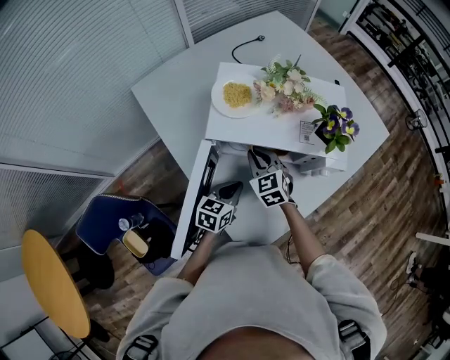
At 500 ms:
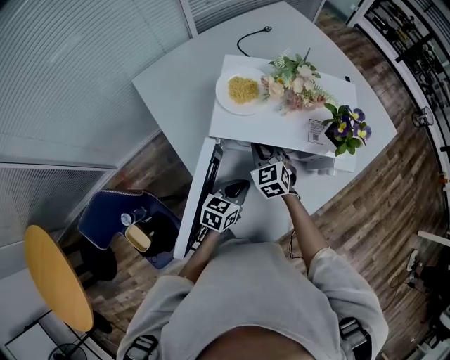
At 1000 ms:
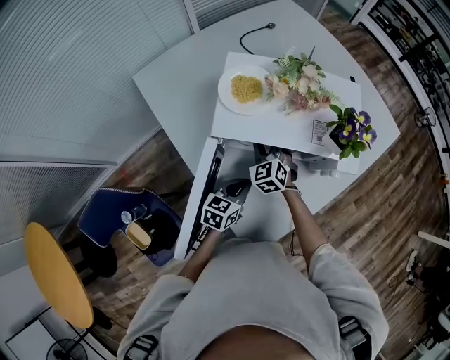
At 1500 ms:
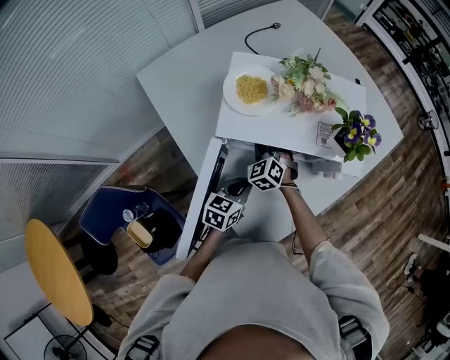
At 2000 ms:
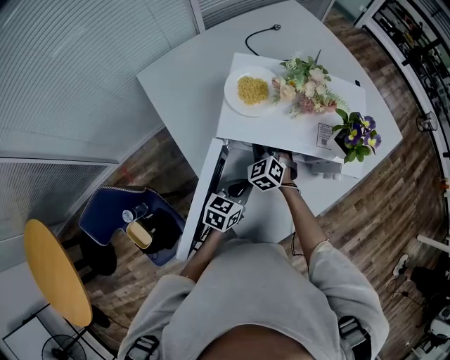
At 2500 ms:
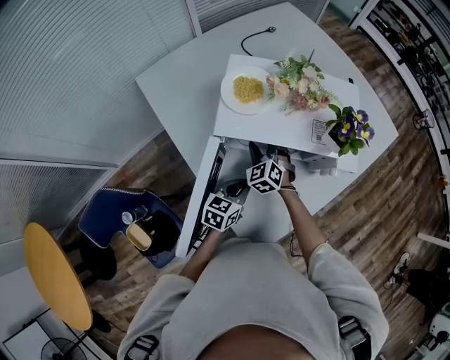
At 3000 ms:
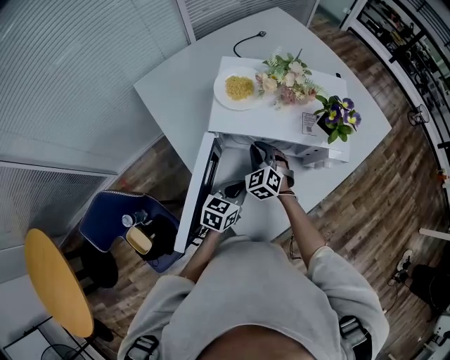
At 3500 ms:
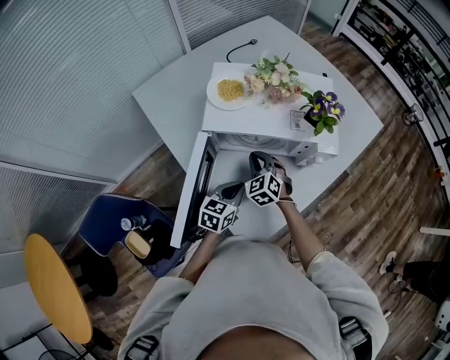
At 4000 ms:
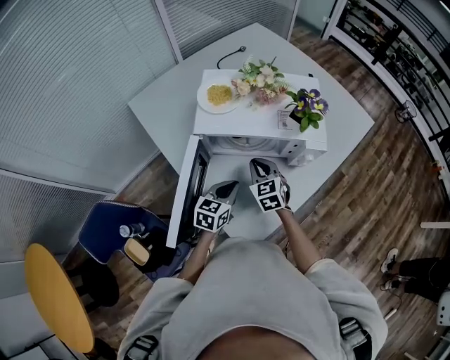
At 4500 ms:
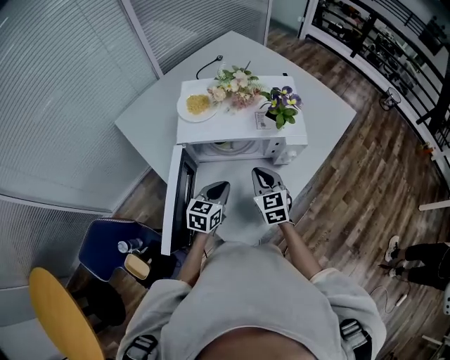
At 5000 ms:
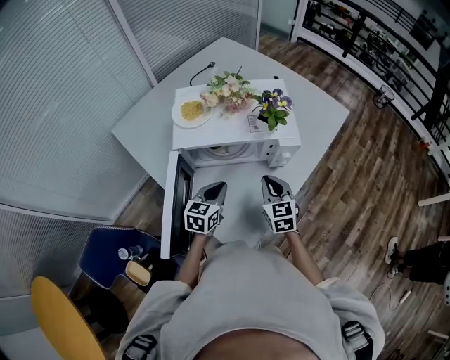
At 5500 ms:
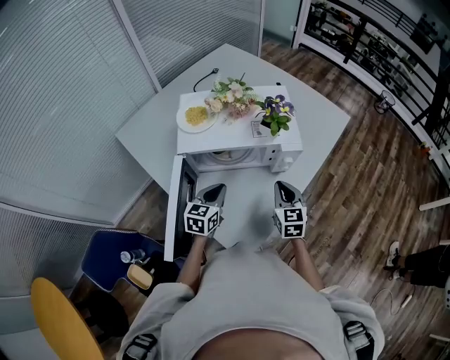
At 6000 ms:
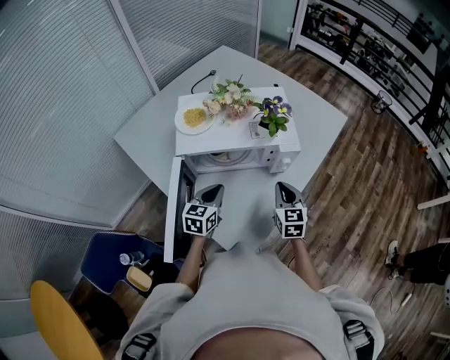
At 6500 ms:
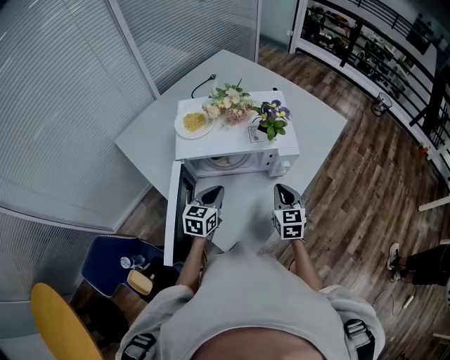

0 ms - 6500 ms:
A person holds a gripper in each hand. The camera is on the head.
0 ms - 2000 ms: The right gripper goes some 5 cm downward, and swivels approximately 20 degrees.
2000 ms - 4500 ms: The right gripper moves to the right, backward and upward, approximately 20 cm, and changes its angle by roughly 40 degrees. The left gripper goes about 5 cm upward.
4500 ms - 6500 ms: The right gripper is displaced to the right by about 10 cm.

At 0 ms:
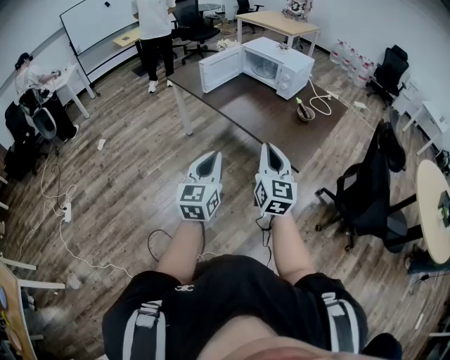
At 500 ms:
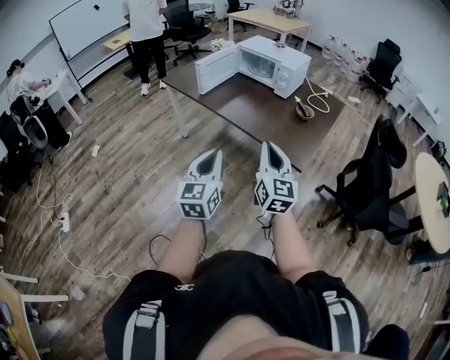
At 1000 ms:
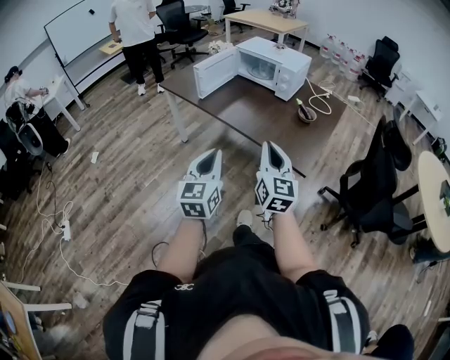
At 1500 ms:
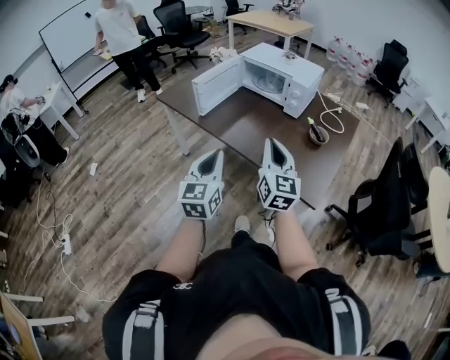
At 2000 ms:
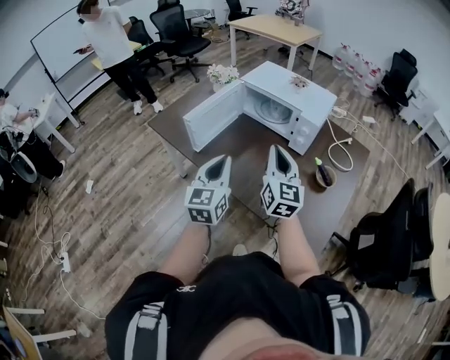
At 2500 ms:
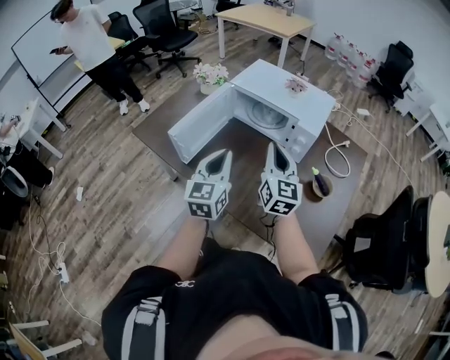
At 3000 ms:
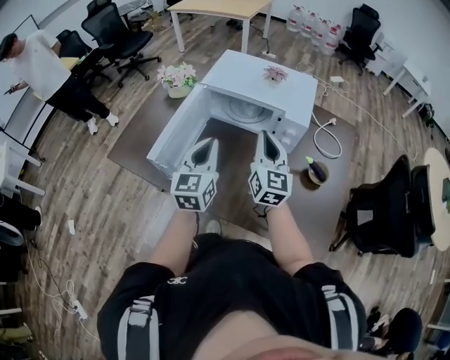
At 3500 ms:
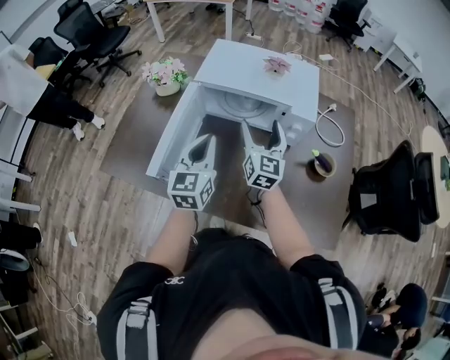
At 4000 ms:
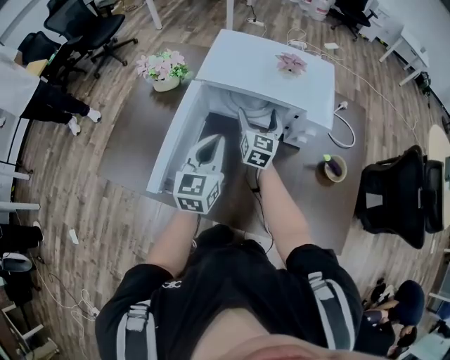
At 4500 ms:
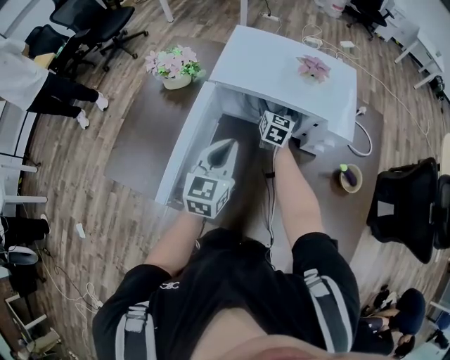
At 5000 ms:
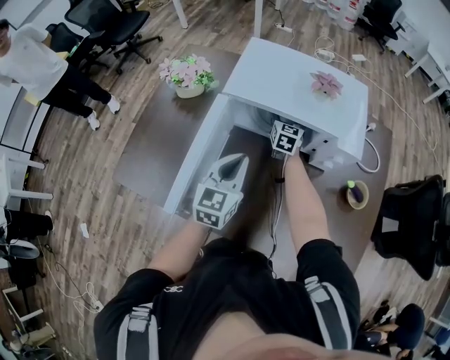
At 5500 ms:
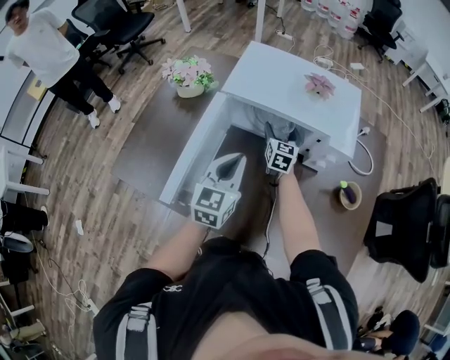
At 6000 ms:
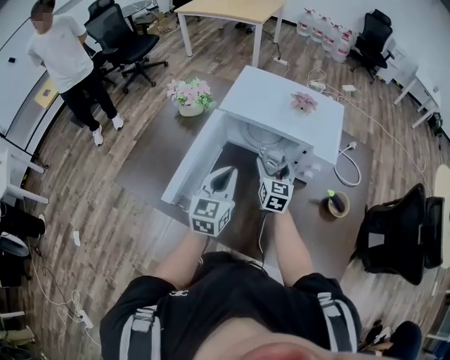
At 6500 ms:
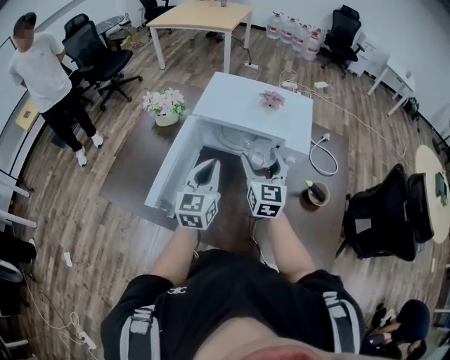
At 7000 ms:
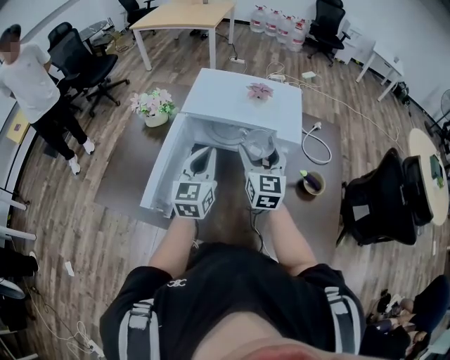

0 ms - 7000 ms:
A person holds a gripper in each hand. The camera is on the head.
0 ms - 2000 ms: The pair of grippers is taken forward, approximately 50 cm.
2000 ms - 3500 ms: Both grippers travel together forward, some 30 cm. The left gripper rotates roughly 20 degrees. Meanwhile the right gripper rotates approximately 20 degrees, and opens.
3500 ms - 5000 ms: The left gripper shifts approximately 10 cm downward and forward. Meanwhile the right gripper heads forward and downward, covering roughly 30 cm, and rotates some 20 degrees.
5000 ms - 7000 ms: The right gripper moves backward and upward, roughly 30 cm. Meanwhile the left gripper moves upward, some 10 cm.

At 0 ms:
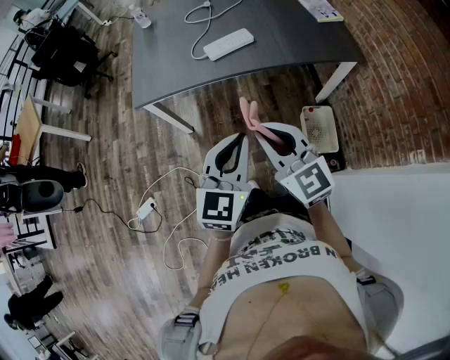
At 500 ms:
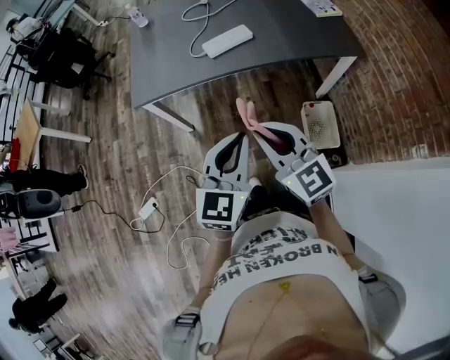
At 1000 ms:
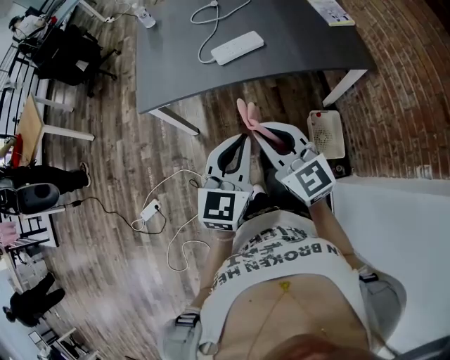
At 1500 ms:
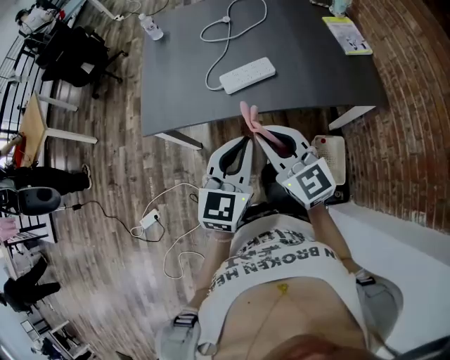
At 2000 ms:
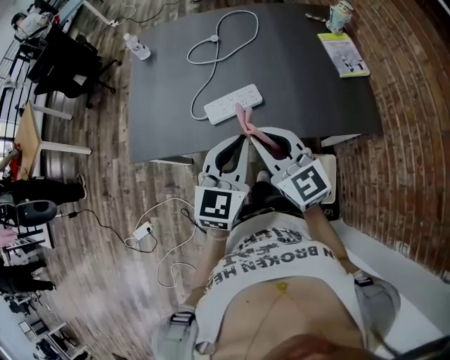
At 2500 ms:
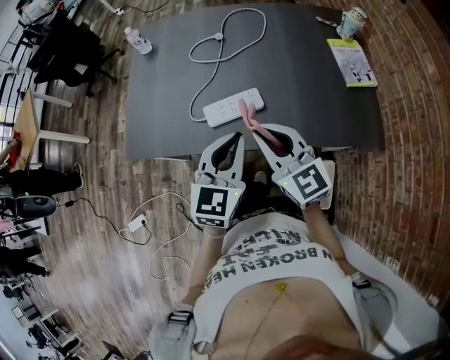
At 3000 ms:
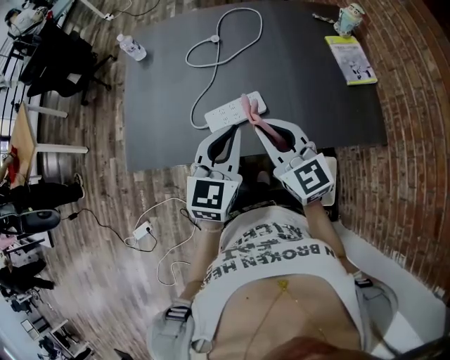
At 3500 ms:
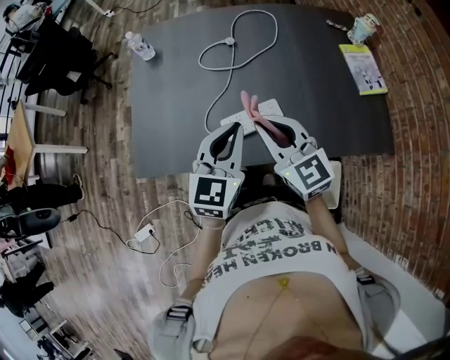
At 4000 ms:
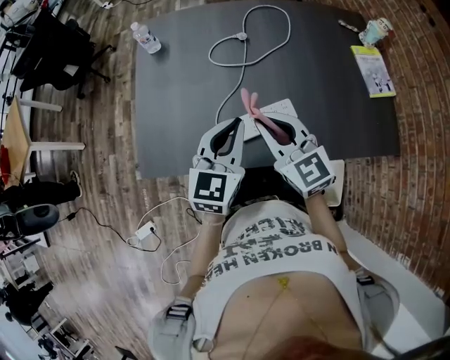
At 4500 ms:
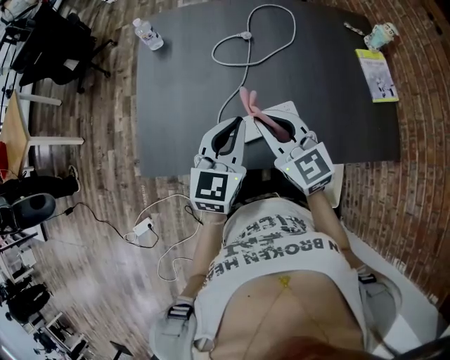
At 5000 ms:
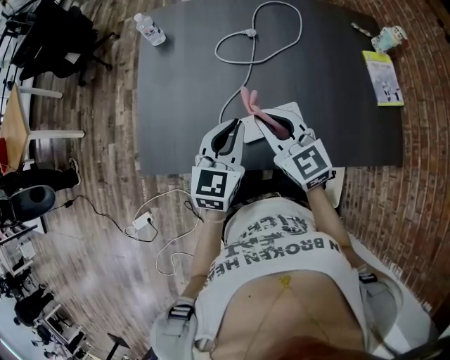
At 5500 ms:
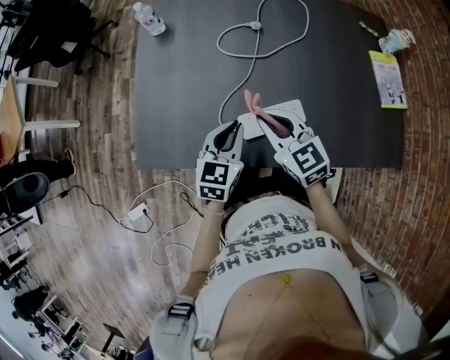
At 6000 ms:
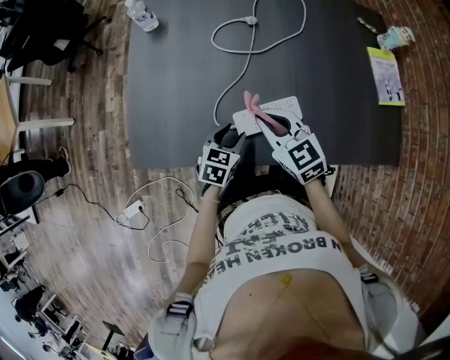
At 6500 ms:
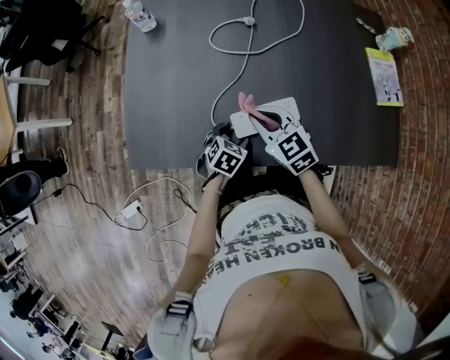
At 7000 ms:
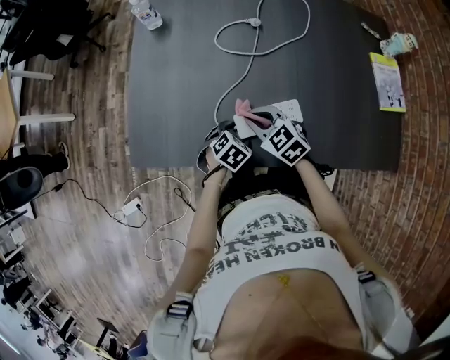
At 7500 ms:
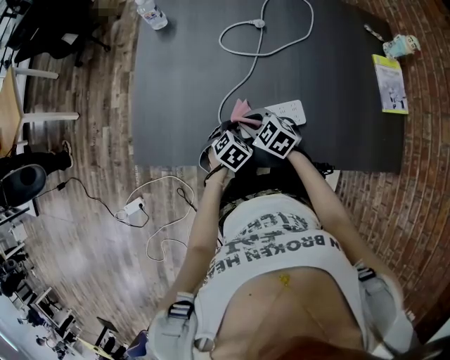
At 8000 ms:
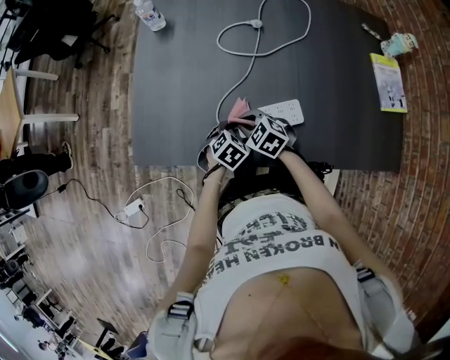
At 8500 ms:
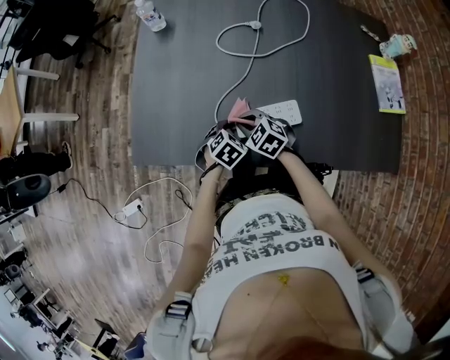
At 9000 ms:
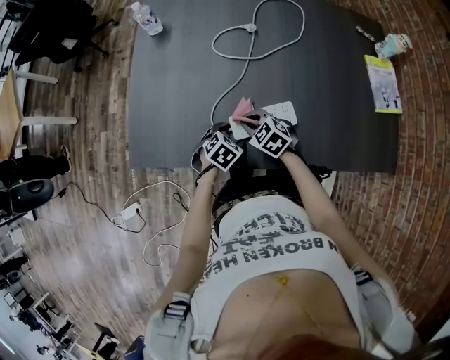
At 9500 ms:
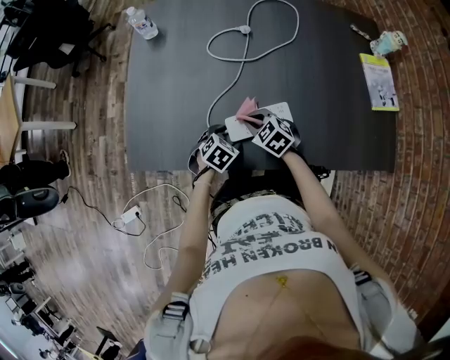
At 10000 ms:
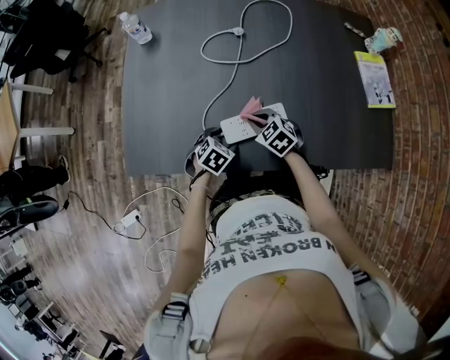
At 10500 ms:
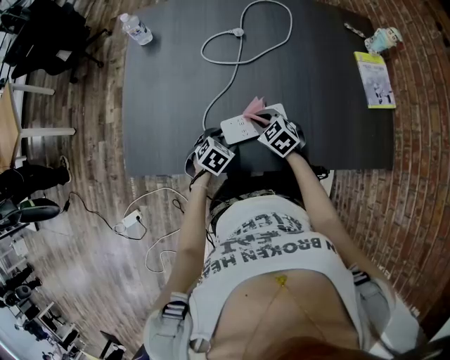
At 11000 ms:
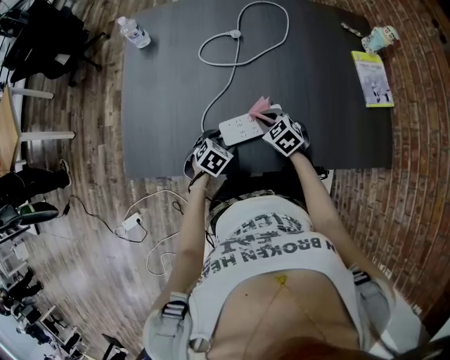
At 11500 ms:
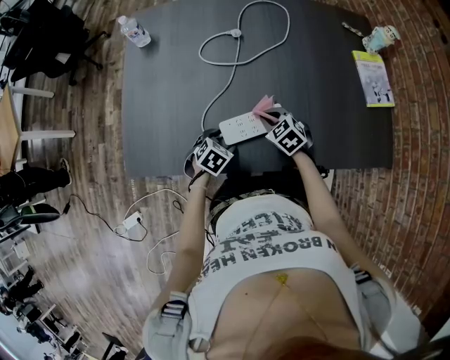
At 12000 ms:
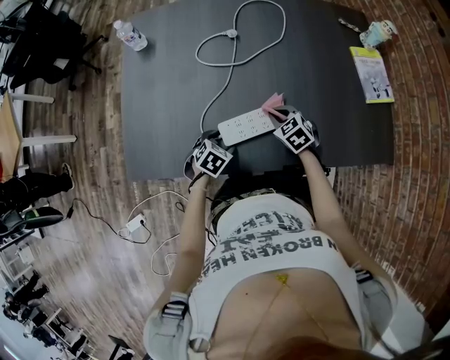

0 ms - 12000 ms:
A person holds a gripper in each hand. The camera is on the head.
0 ms - 2000 ms: Both grippers travel together forward, about 30 cm.
2000 ms - 4000 ms: The two grippers go some 20 cm forward and to the left.
4000 ms - 6000 ms: The right gripper travels downward by about 10 cm; the left gripper shifts approximately 25 cm downward, turns by roughly 30 degrees, and opens its fingers.
6000 ms - 8000 ms: The left gripper heads downward, covering about 5 cm, swivels about 30 degrees, and opens, while the right gripper travels downward by about 15 cm, and swivels approximately 30 degrees.
8000 ms - 10000 ms: The right gripper is displaced to the right by approximately 10 cm.
10000 ms - 12000 ms: The right gripper travels to the right by some 10 cm.

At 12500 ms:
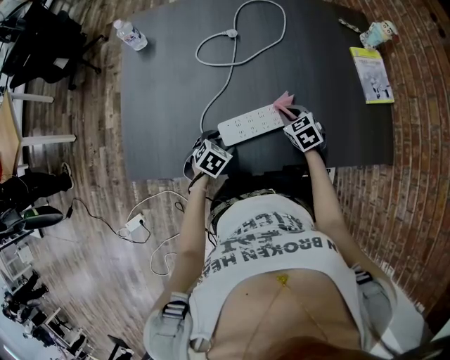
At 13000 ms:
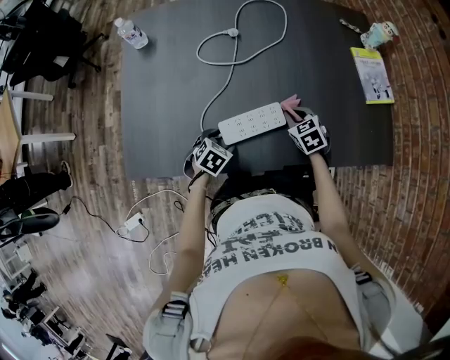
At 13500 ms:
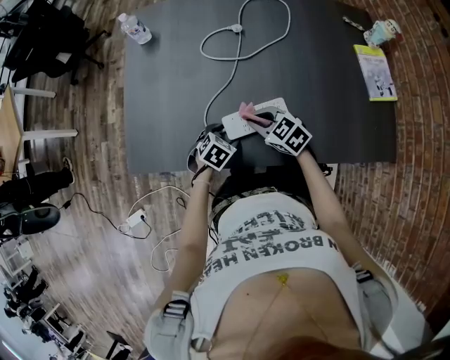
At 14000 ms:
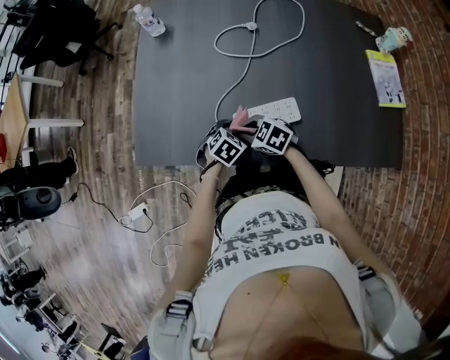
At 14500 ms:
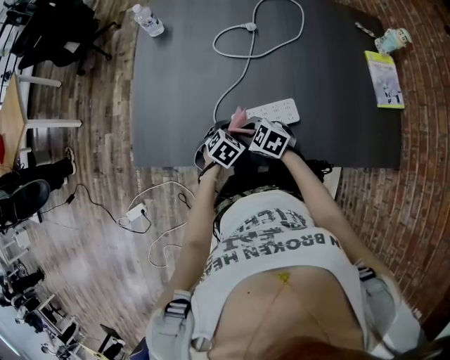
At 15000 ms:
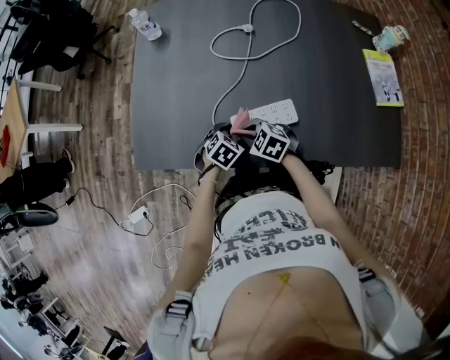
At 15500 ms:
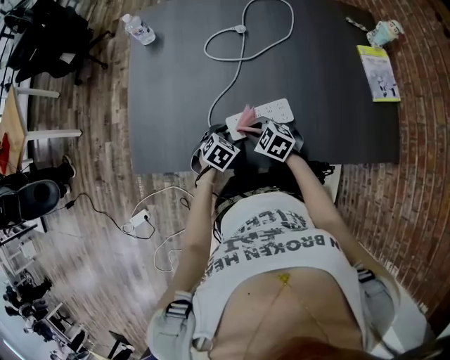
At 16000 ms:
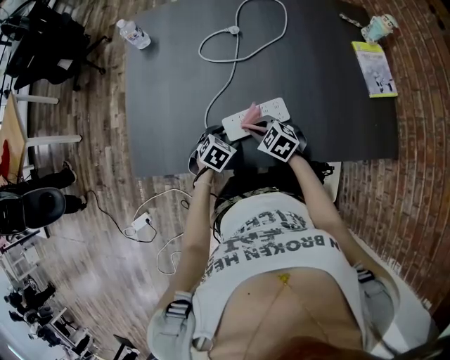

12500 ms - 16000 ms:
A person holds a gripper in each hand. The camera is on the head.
12500 ms - 14500 ms: The right gripper moves roughly 25 cm, and changes its angle by some 40 degrees.
14500 ms - 16000 ms: The right gripper changes place by roughly 10 cm.
